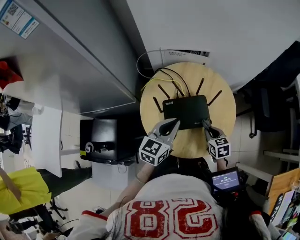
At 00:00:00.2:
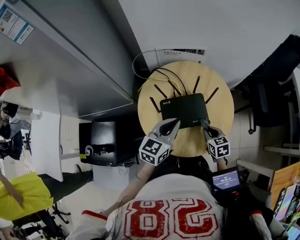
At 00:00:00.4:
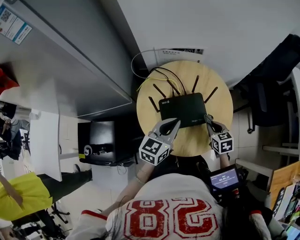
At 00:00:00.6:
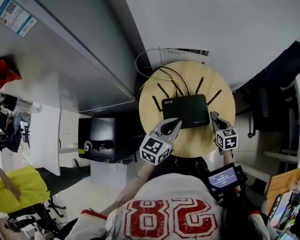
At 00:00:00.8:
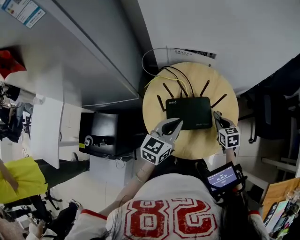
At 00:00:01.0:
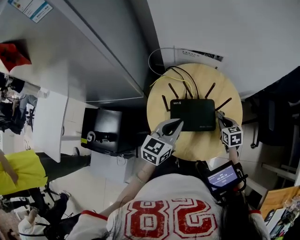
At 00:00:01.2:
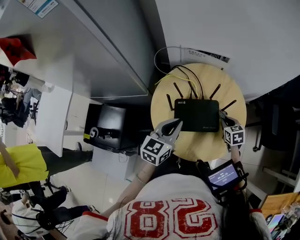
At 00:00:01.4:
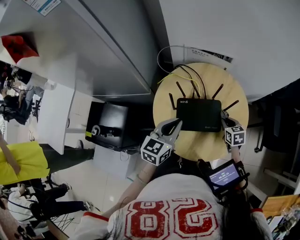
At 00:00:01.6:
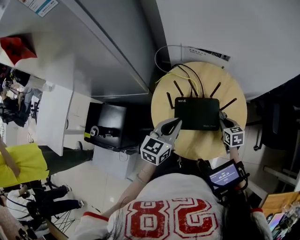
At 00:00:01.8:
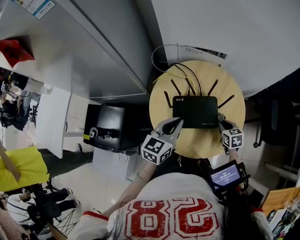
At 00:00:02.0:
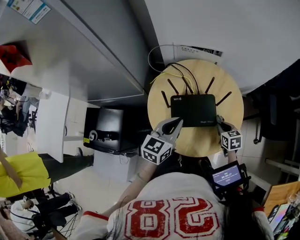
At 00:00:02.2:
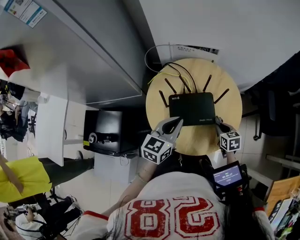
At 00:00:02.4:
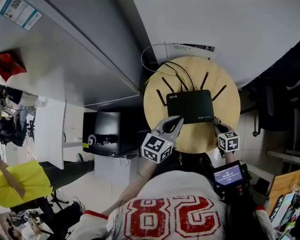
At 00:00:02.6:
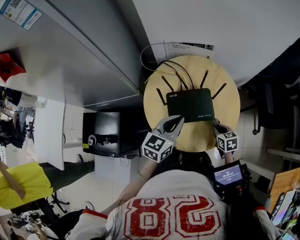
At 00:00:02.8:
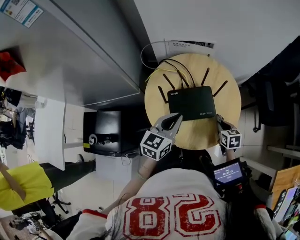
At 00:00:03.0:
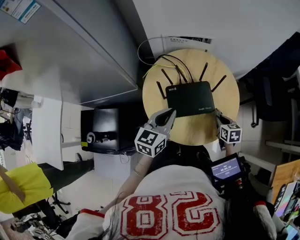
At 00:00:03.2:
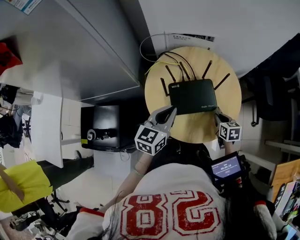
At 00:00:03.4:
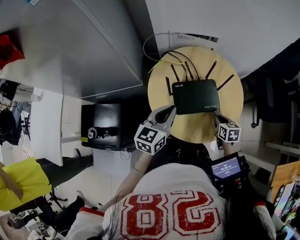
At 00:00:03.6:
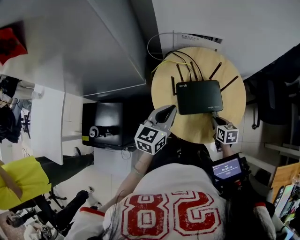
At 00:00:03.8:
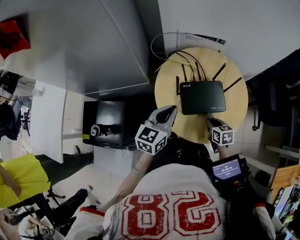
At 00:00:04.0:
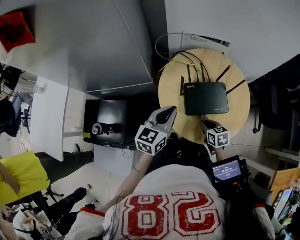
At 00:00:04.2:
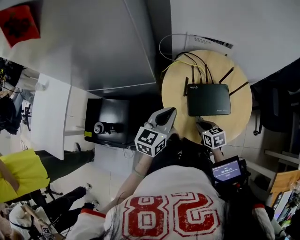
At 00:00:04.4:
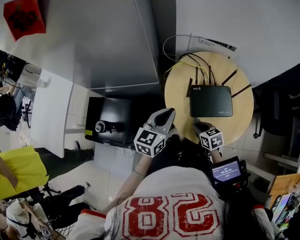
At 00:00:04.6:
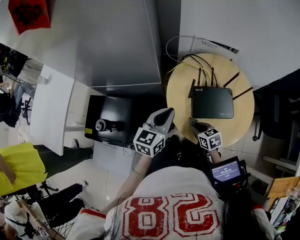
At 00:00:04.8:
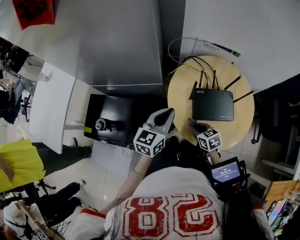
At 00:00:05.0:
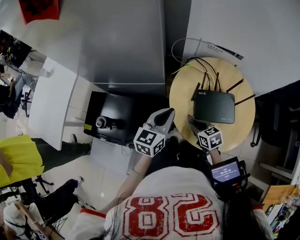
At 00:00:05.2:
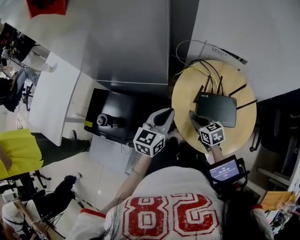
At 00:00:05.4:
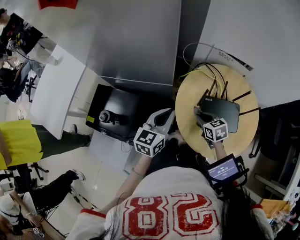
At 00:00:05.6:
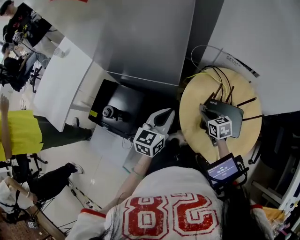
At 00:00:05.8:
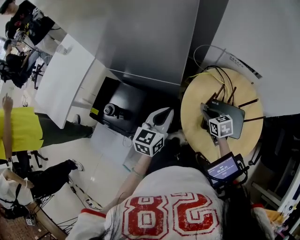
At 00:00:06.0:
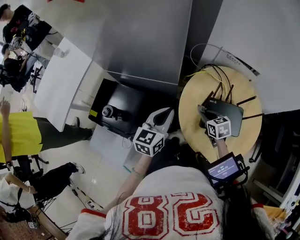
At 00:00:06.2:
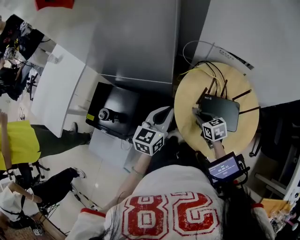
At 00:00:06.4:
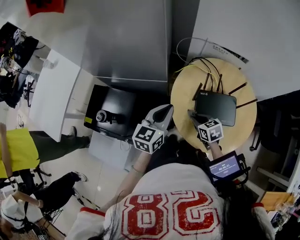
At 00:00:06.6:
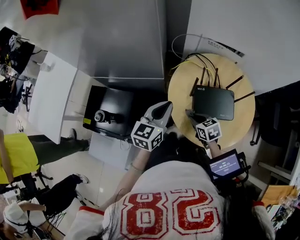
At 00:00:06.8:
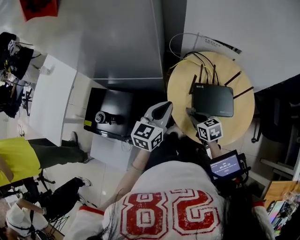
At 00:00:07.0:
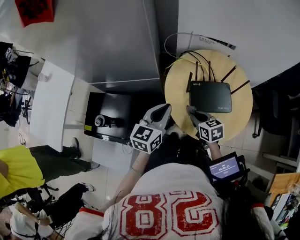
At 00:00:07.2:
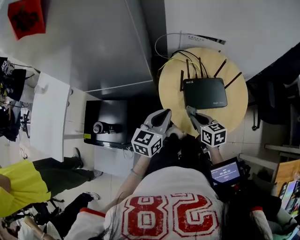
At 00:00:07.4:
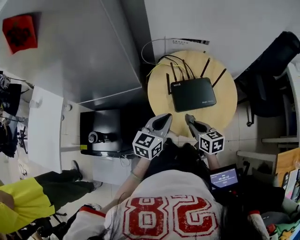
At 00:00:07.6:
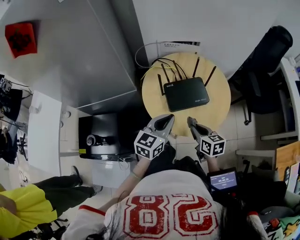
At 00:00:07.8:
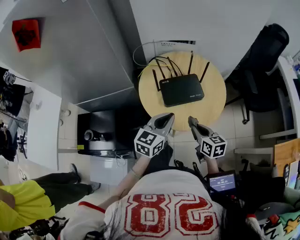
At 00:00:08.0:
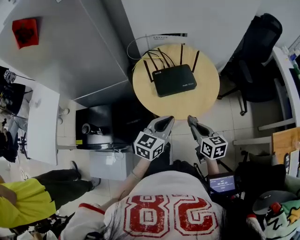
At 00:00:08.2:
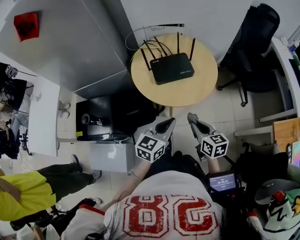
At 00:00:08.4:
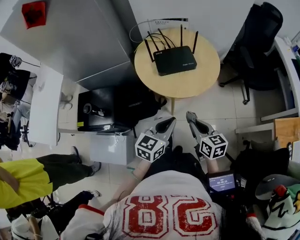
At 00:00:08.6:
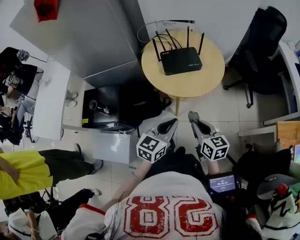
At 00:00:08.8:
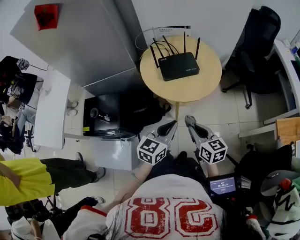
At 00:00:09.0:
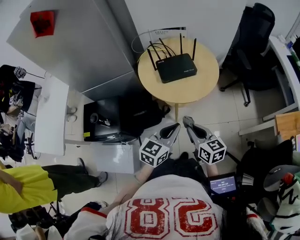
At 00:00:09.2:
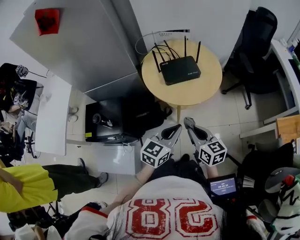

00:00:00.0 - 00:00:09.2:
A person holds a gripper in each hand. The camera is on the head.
00:00:00.0 - 00:00:01.6: The right gripper shifts some 10 cm forward.
00:00:01.6 - 00:00:03.0: The right gripper goes about 10 cm backward.
00:00:03.0 - 00:00:04.6: The right gripper is displaced to the left by some 25 cm, and turns by approximately 30 degrees. Meanwhile the left gripper goes some 15 cm to the left.
00:00:04.6 - 00:00:06.2: The right gripper is displaced forward by about 10 cm.
00:00:06.2 - 00:00:07.6: The right gripper changes place by roughly 20 cm, and changes its angle by approximately 40 degrees; the left gripper shifts by roughly 15 cm, and rotates approximately 30 degrees.
00:00:07.6 - 00:00:09.2: Both grippers move backward, some 20 cm.

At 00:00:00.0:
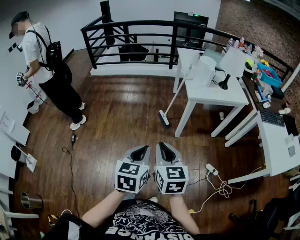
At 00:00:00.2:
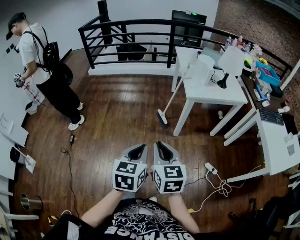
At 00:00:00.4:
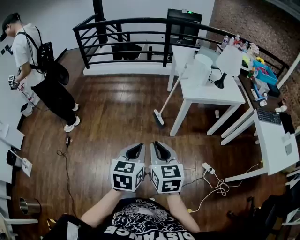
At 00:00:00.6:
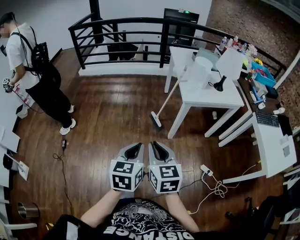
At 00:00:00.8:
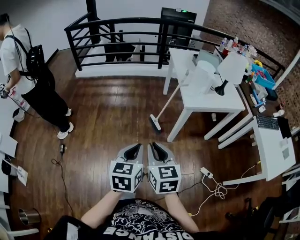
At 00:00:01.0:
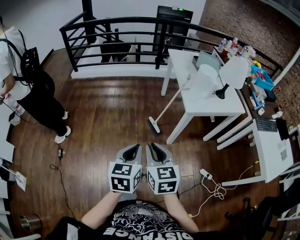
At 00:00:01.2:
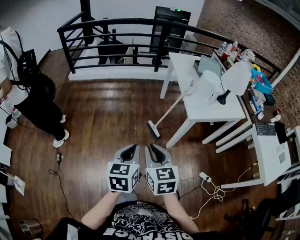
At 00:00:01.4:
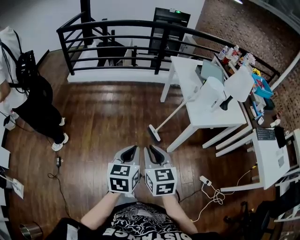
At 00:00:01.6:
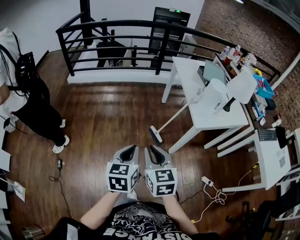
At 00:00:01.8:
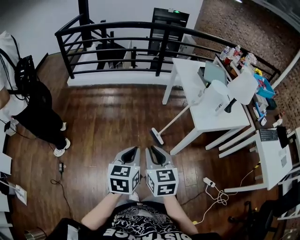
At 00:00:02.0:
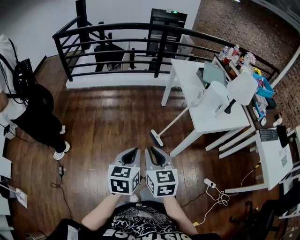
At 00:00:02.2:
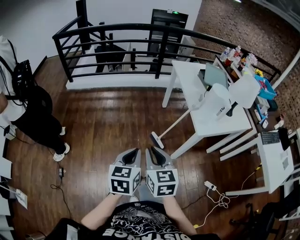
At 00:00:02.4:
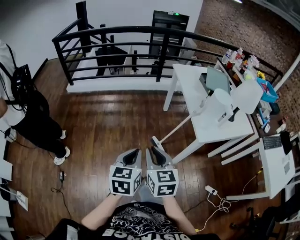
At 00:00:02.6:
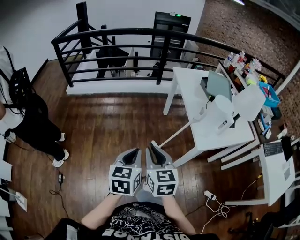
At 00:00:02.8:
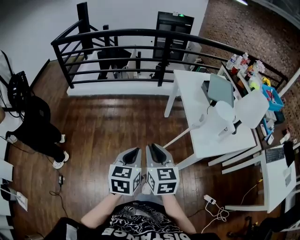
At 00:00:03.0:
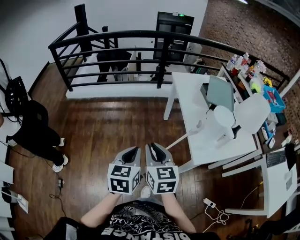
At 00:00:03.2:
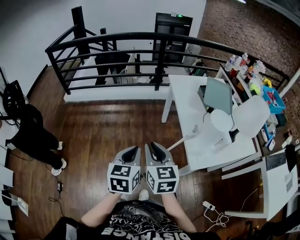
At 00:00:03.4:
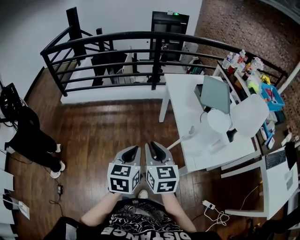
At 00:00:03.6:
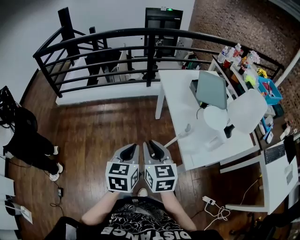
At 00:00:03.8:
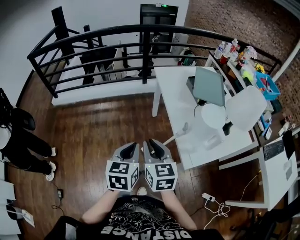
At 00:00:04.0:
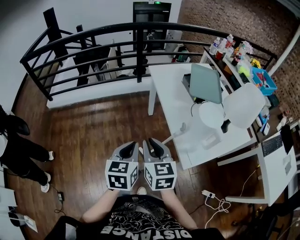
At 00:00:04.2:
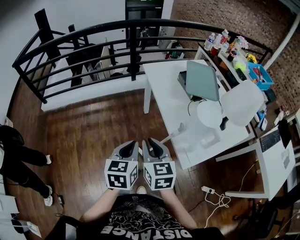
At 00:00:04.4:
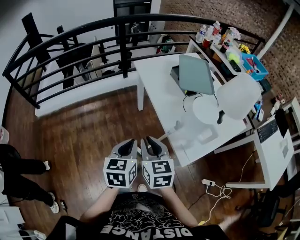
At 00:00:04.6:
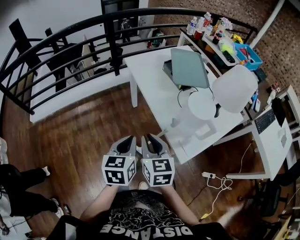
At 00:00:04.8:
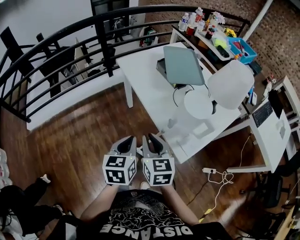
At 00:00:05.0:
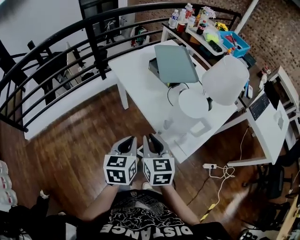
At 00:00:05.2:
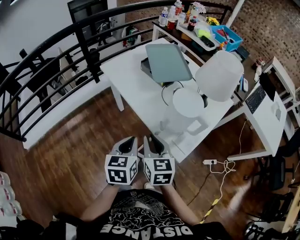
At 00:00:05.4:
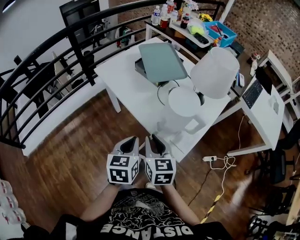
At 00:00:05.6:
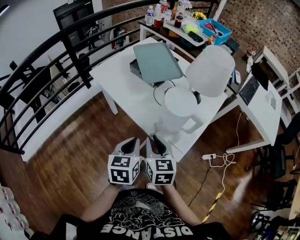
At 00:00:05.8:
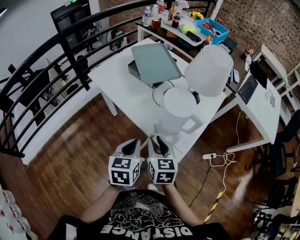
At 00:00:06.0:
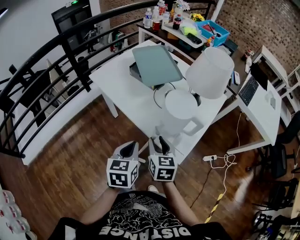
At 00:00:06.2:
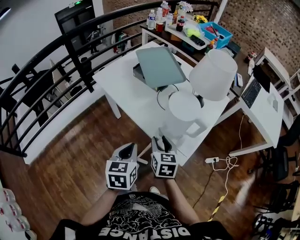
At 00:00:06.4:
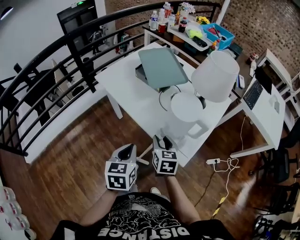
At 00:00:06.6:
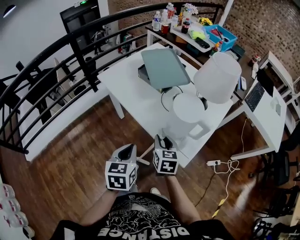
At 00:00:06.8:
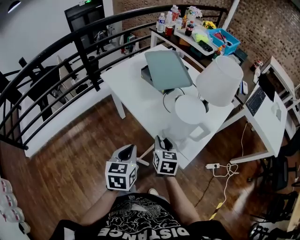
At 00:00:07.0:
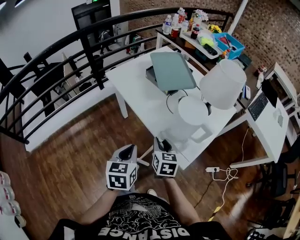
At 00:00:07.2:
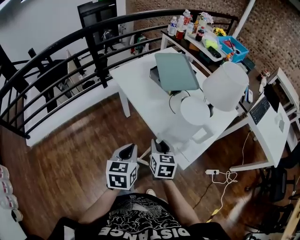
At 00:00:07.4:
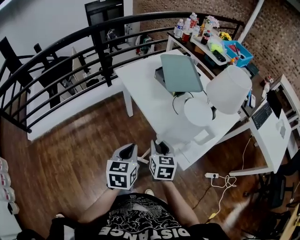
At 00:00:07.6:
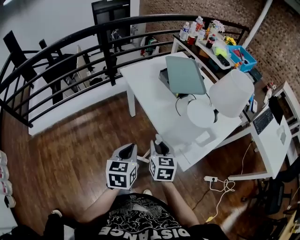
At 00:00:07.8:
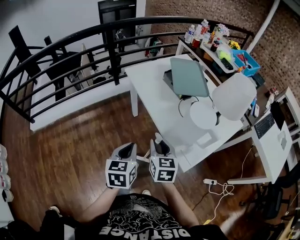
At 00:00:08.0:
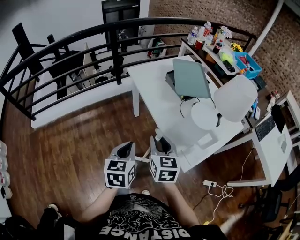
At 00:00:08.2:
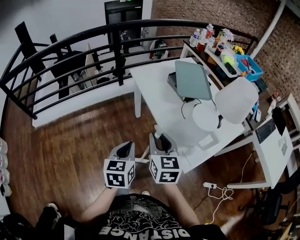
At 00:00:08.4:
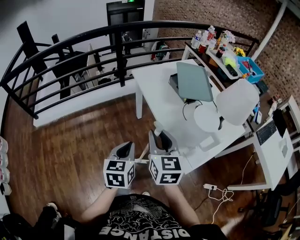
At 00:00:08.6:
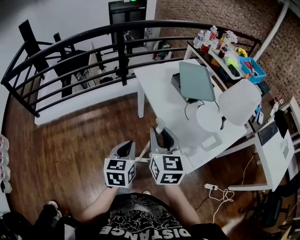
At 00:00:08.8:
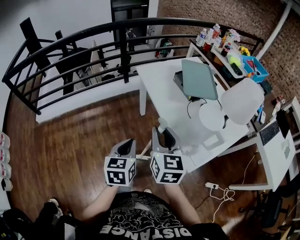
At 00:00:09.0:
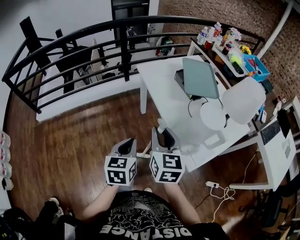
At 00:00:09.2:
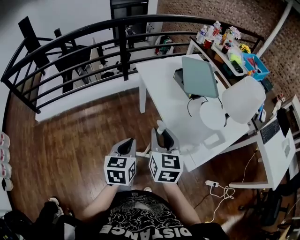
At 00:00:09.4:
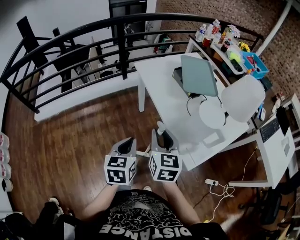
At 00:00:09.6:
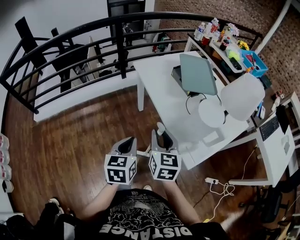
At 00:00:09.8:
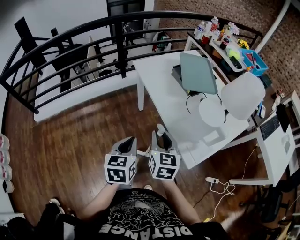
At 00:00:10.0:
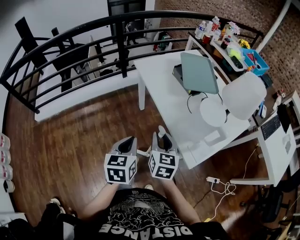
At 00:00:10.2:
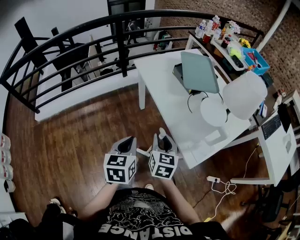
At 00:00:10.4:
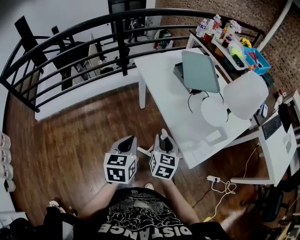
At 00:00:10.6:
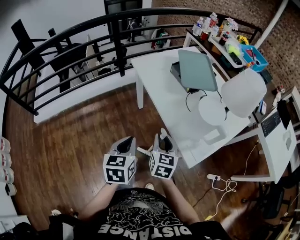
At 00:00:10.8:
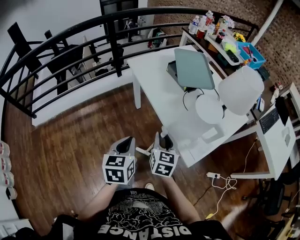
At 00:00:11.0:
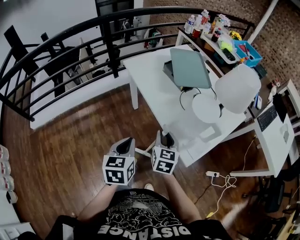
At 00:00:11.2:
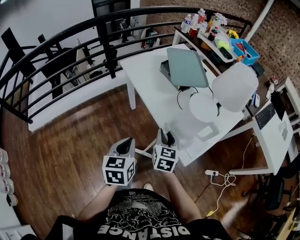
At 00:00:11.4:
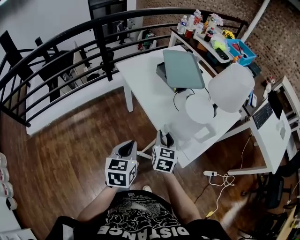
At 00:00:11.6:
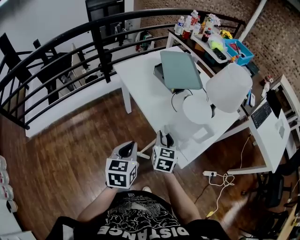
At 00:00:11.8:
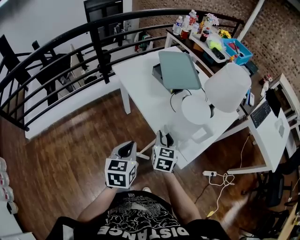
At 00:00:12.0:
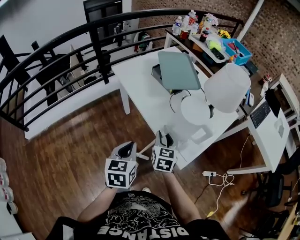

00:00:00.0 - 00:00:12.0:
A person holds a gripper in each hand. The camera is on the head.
00:00:00.0 - 00:00:01.6: Both grippers travel together forward and to the left, about 35 cm.
00:00:01.6 - 00:00:03.0: Both grippers travel together forward, some 25 cm.
00:00:03.0 - 00:00:04.4: The grippers both shift forward and to the right by roughly 15 cm.
00:00:04.4 - 00:00:06.0: The right gripper shifts by some 15 cm, turns by about 30 degrees, and opens its fingers. The left gripper changes place by roughly 15 cm, and turns by approximately 30 degrees.
00:00:06.0 - 00:00:07.6: The left gripper moves to the left and backward, some 10 cm. Meanwhile the right gripper heads to the left, covering about 5 cm.
00:00:07.6 - 00:00:09.0: The right gripper moves upward and to the left, about 15 cm; the left gripper ends up roughly 5 cm from where it was.
00:00:09.0 - 00:00:10.4: The right gripper is displaced downward by approximately 15 cm.
00:00:10.4 - 00:00:12.0: The right gripper travels to the right and forward by about 10 cm. The left gripper goes some 5 cm to the right.

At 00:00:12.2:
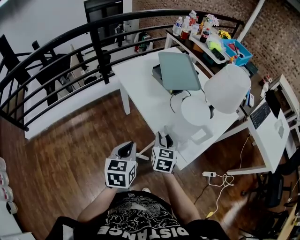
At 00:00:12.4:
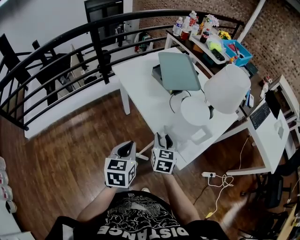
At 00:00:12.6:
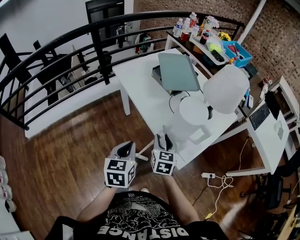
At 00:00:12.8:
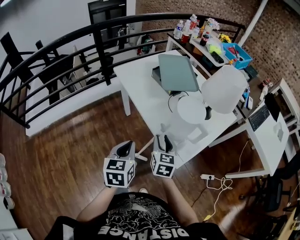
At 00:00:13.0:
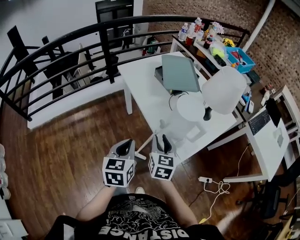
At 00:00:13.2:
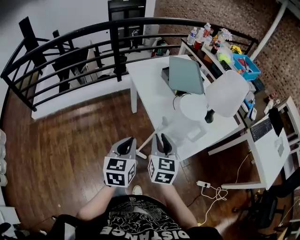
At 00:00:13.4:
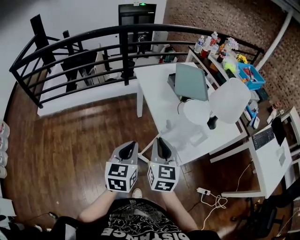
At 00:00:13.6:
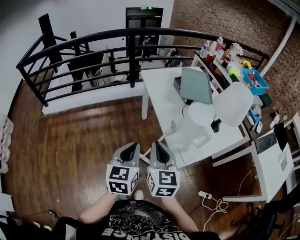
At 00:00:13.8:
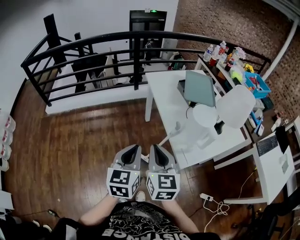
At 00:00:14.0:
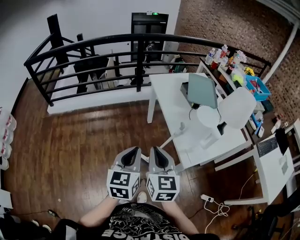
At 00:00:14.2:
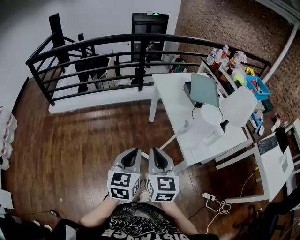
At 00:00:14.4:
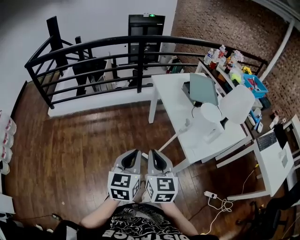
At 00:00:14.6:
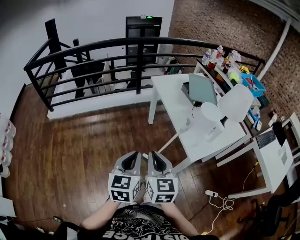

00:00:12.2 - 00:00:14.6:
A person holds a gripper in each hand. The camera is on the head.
00:00:12.2 - 00:00:13.4: The right gripper moves upward and backward, approximately 20 cm, and changes its angle by roughly 20 degrees. The left gripper is displaced backward and upward by about 10 cm.
00:00:13.4 - 00:00:14.6: Both grippers travel together to the left and backward, roughly 20 cm.
